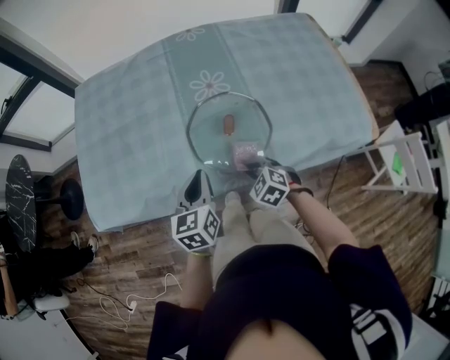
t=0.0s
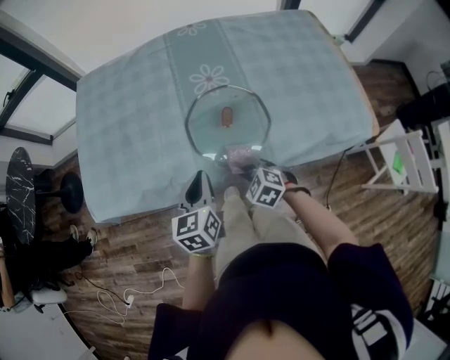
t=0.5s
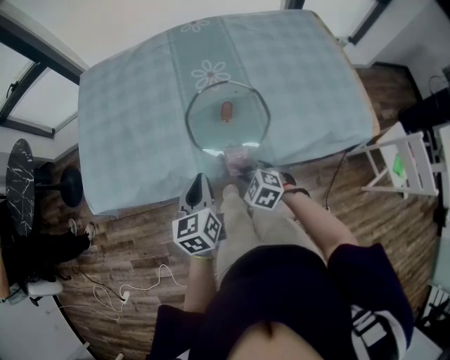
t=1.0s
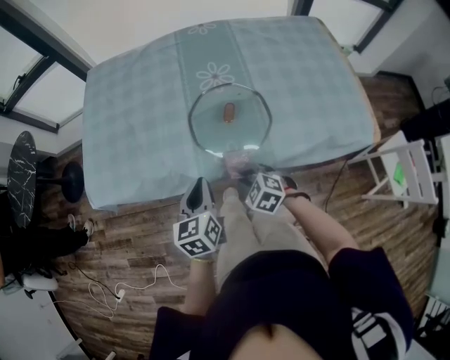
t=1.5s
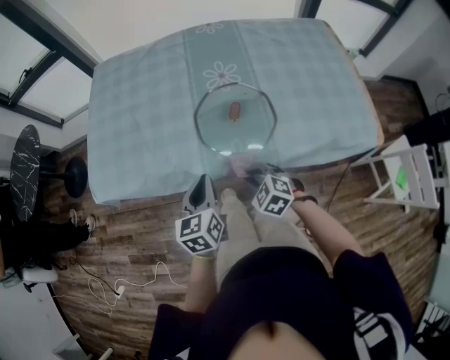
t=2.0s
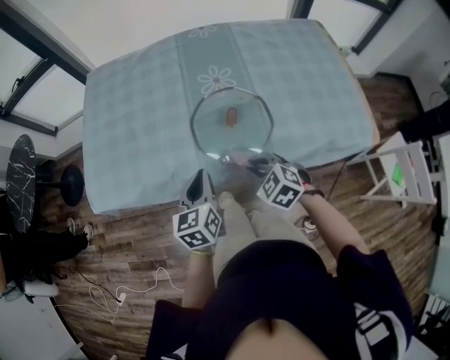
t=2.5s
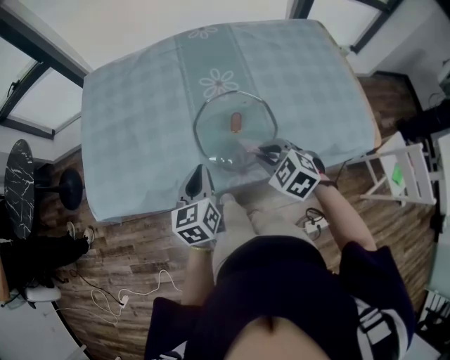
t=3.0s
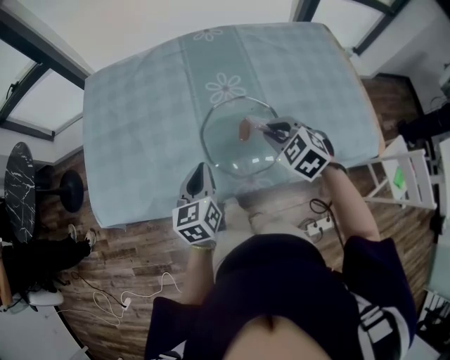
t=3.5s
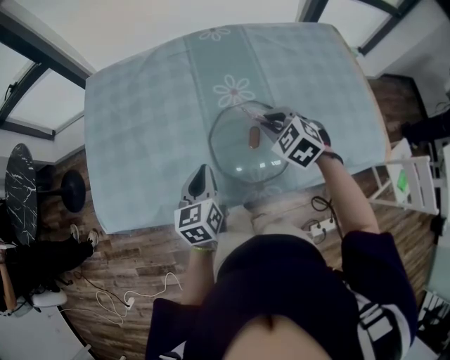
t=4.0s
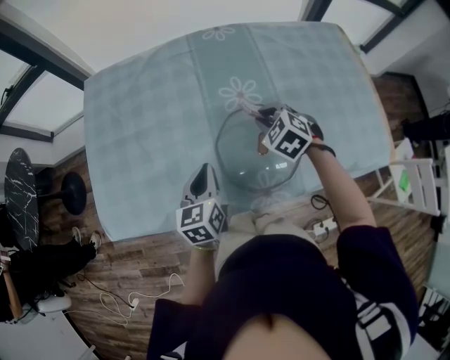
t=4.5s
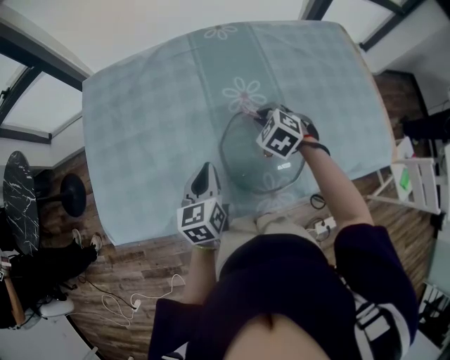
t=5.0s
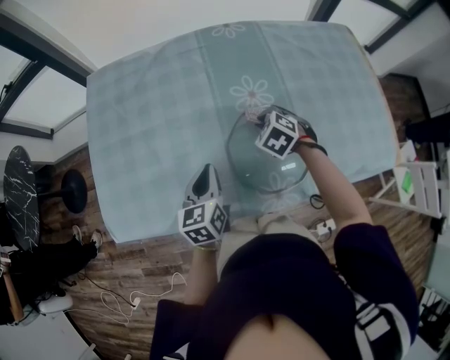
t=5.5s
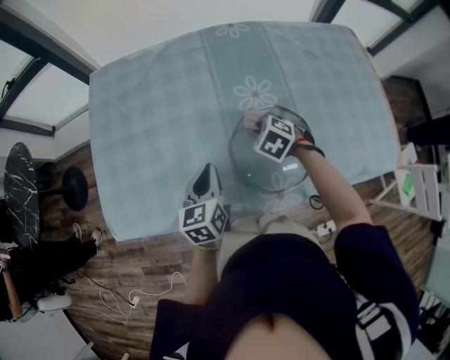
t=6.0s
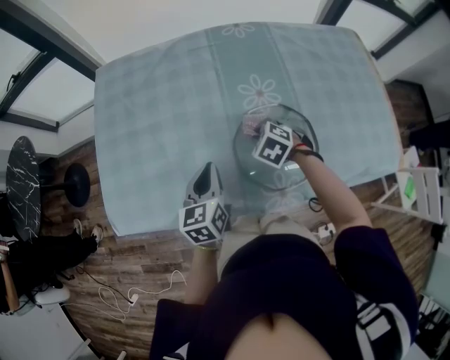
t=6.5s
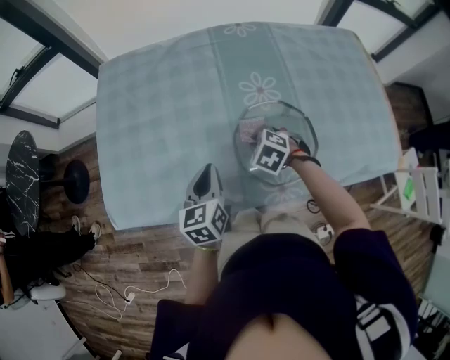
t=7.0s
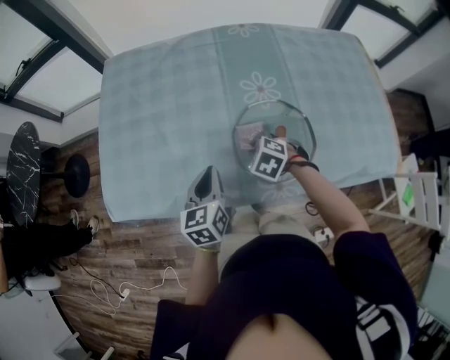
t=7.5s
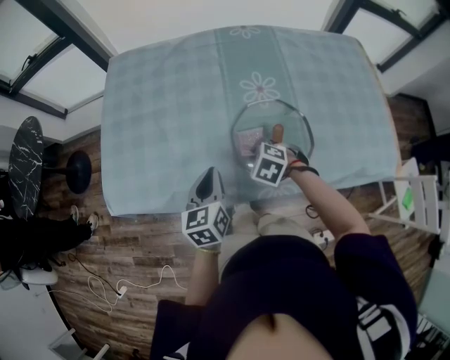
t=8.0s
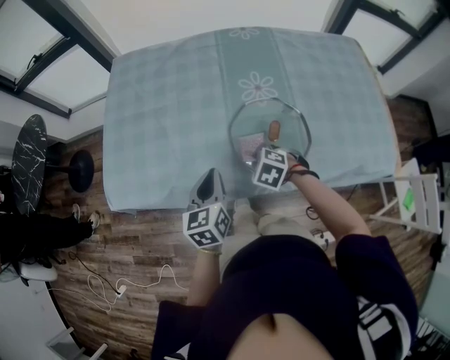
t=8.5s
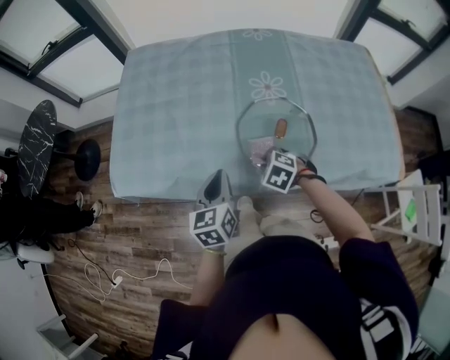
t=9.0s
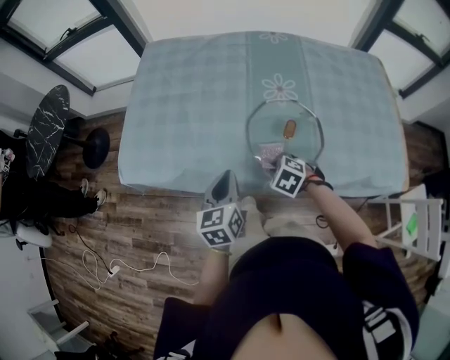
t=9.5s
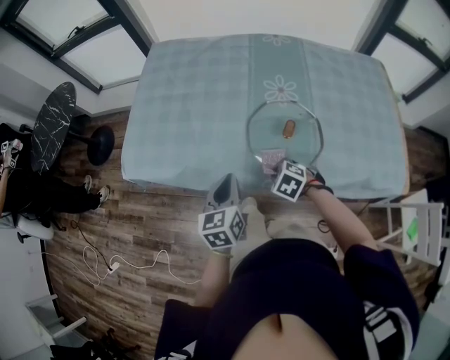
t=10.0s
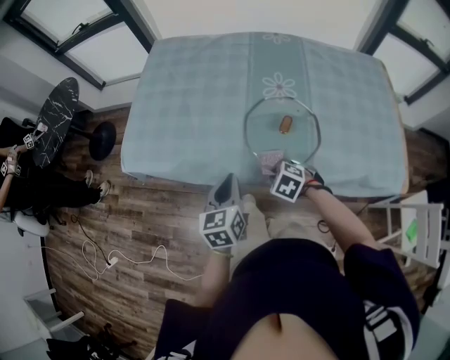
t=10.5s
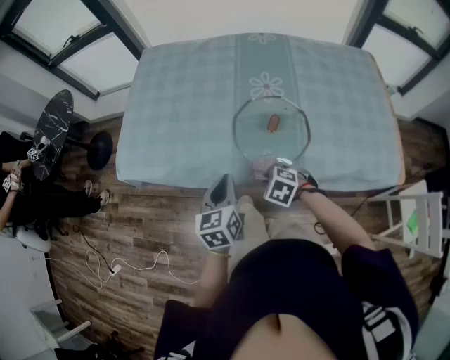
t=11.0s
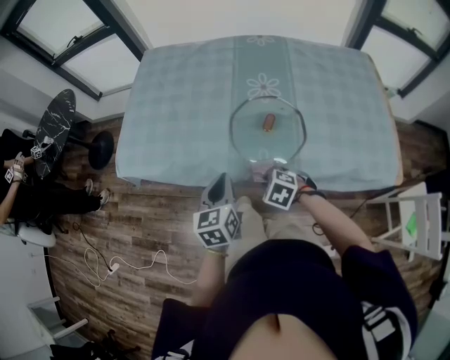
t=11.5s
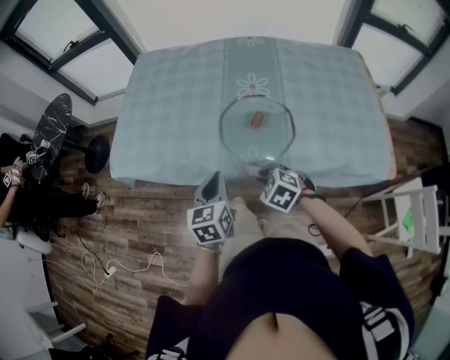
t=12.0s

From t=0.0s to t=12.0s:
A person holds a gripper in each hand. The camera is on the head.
From t=0.0s to t=2.0s: Both grippers move backward, roughly 5 cm.
From t=2.0s to t=4.0s: The right gripper heads forward and upward, covering approximately 25 cm. The left gripper is displaced forward by about 15 cm.
From t=4.0s to t=6.0s: The right gripper moves downward, to the left and forward, about 15 cm, while the left gripper shifts about 5 cm forward.
From t=6.0s to t=8.0s: The right gripper moves backward and to the left, roughly 15 cm. The left gripper moves backward, approximately 10 cm.
From t=8.0s to t=10.0s: The right gripper moves approximately 10 cm. Meanwhile the left gripper moves some 10 cm.
From t=10.0s to t=12.0s: The left gripper travels backward by some 5 cm, while the right gripper shifts approximately 10 cm backward and upward.

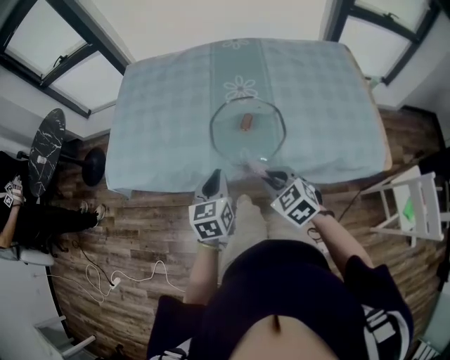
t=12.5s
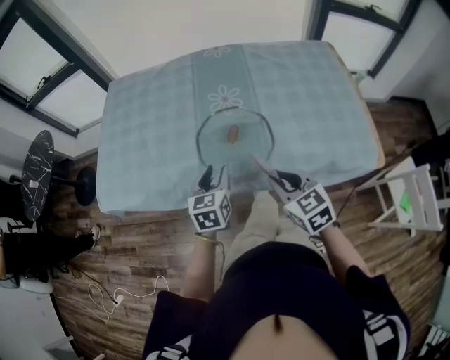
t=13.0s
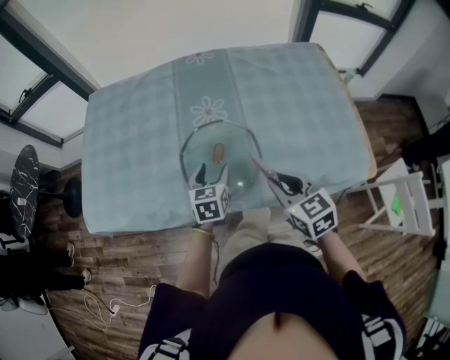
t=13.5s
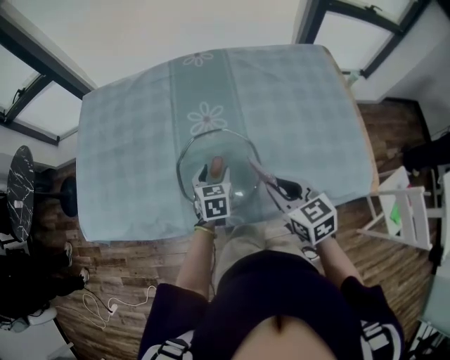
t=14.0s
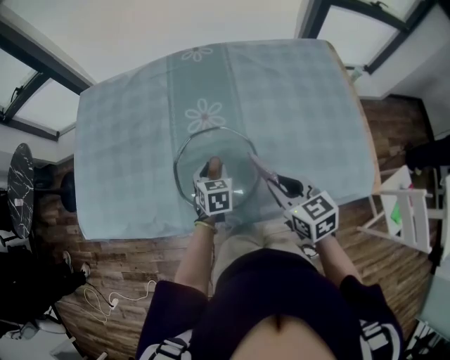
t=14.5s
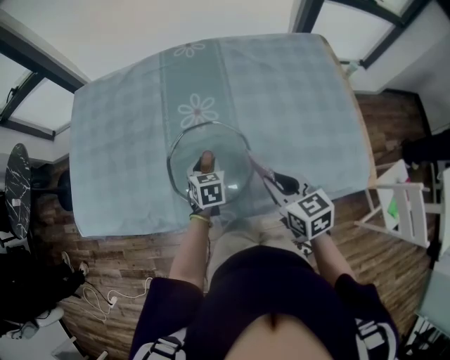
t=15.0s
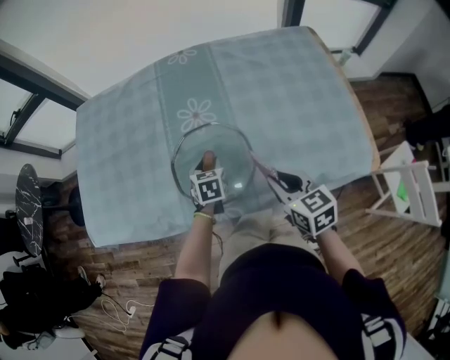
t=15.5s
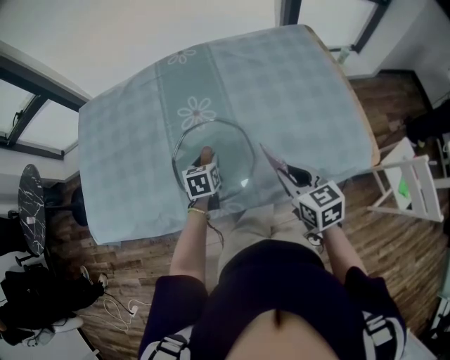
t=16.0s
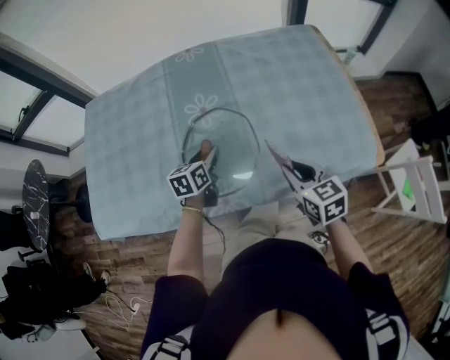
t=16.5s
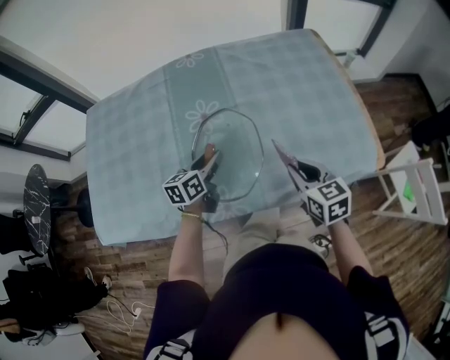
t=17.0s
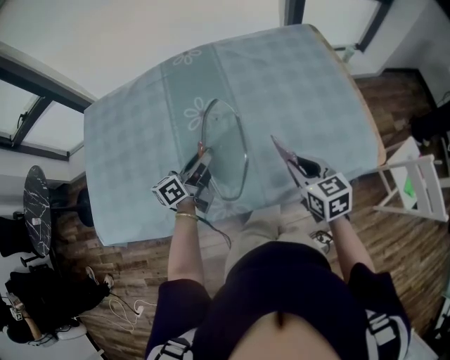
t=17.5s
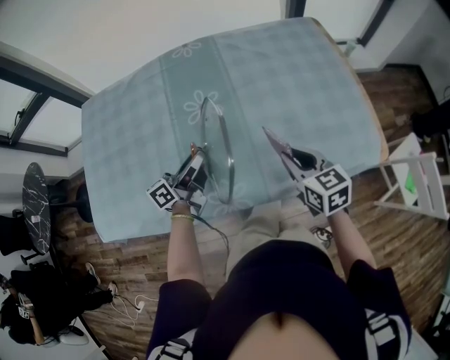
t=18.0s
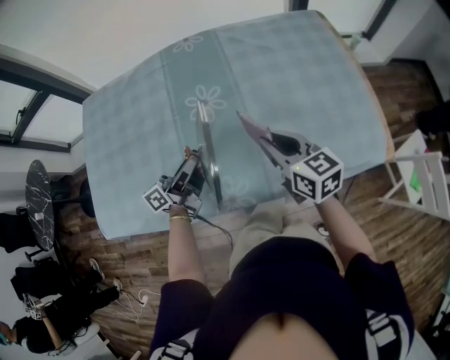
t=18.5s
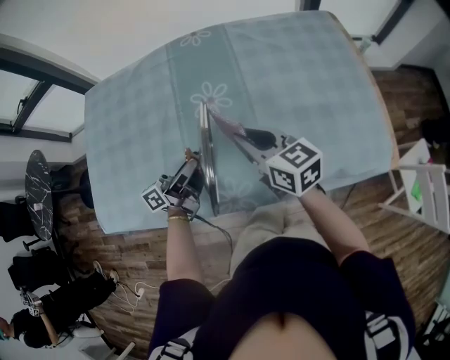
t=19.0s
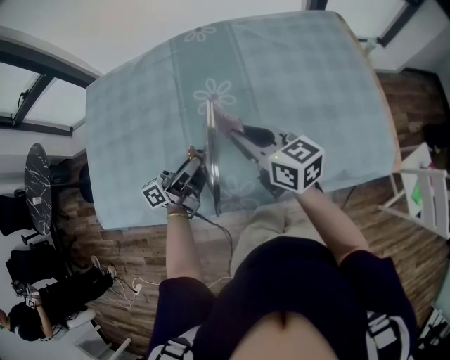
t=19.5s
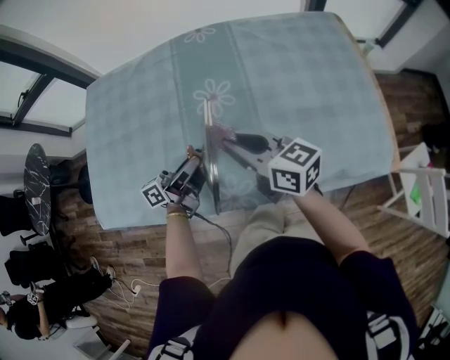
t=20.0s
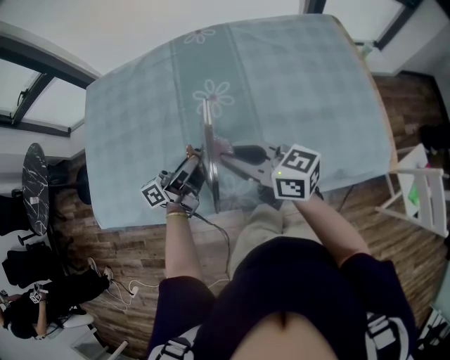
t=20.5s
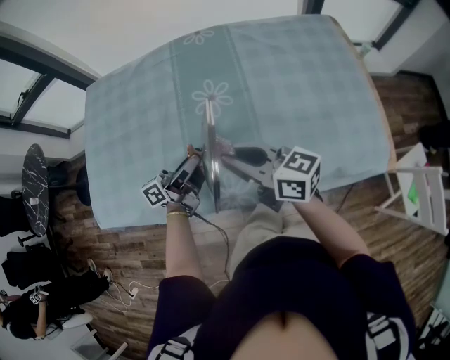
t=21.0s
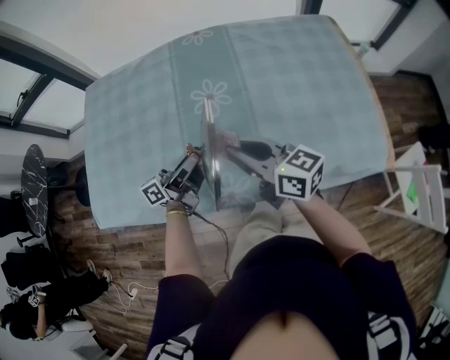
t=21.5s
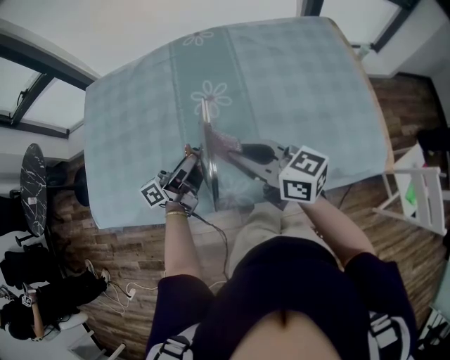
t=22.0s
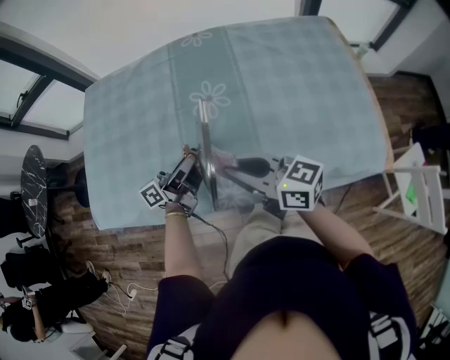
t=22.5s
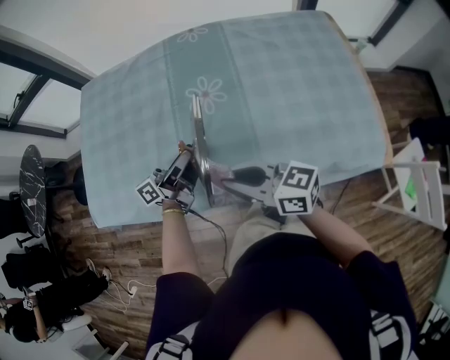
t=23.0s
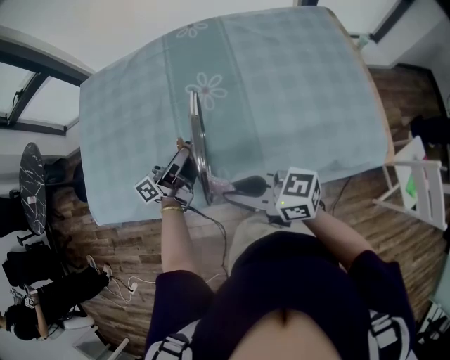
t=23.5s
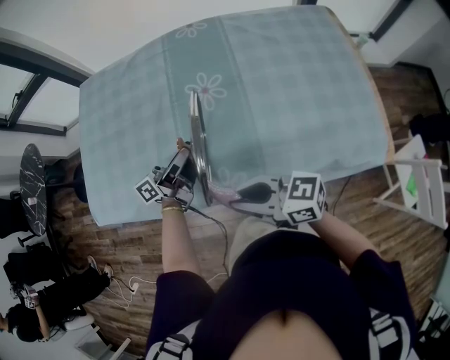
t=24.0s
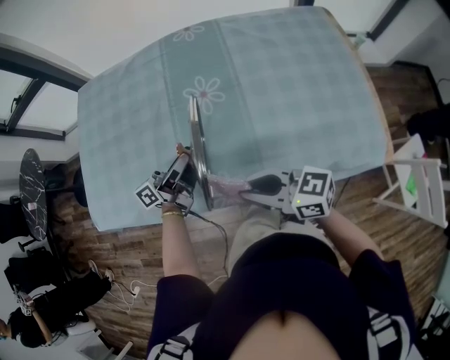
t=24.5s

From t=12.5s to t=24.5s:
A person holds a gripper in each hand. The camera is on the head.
From t=12.5s to t=14.5s: The left gripper is displaced forward, downward and to the right by approximately 25 cm, rotates about 30 degrees, and opens up, while the right gripper shifts roughly 20 cm to the right and forward, and rotates about 30 degrees.
From t=14.5s to t=16.5s: The left gripper swivels some 30 degrees; the right gripper changes place by roughly 5 cm.
From t=16.5s to t=18.5s: The right gripper heads to the left and forward, covering approximately 10 cm; the left gripper is displaced upward by approximately 5 cm, and angles its fingers upward, by roughly 50 degrees.
From t=18.5s to t=20.5s: The right gripper travels to the left by approximately 10 cm, and rotates roughly 30 degrees.
From t=20.5s to t=22.5s: The grippers stay close to where they were, moving slightly.
From t=22.5s to t=24.5s: The right gripper changes place by approximately 5 cm.

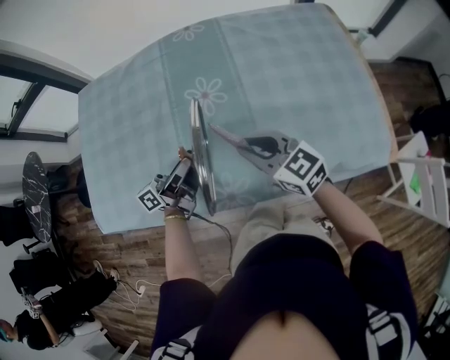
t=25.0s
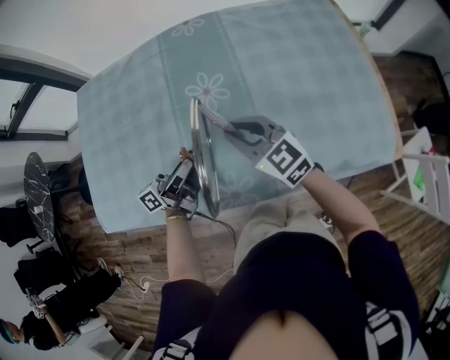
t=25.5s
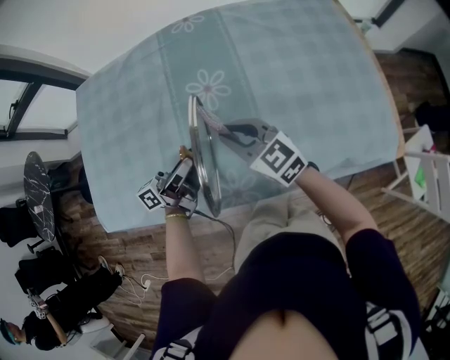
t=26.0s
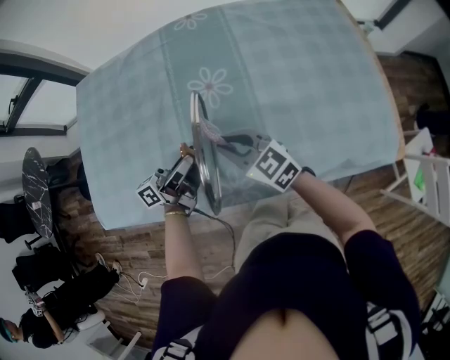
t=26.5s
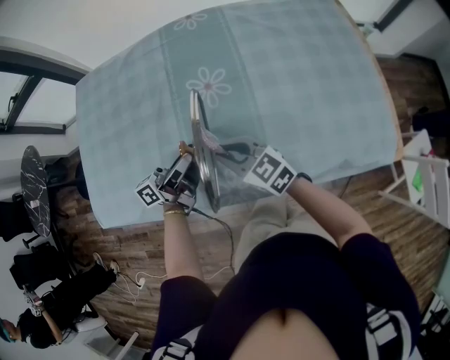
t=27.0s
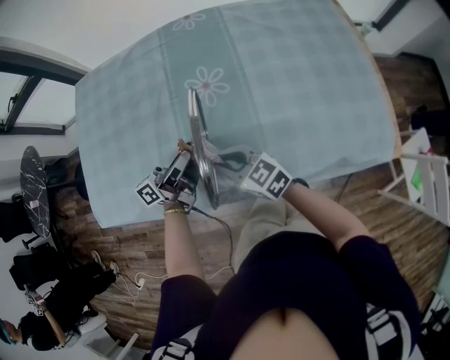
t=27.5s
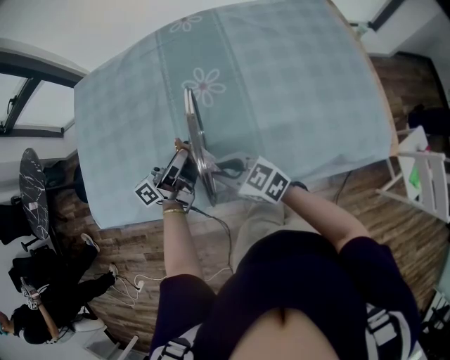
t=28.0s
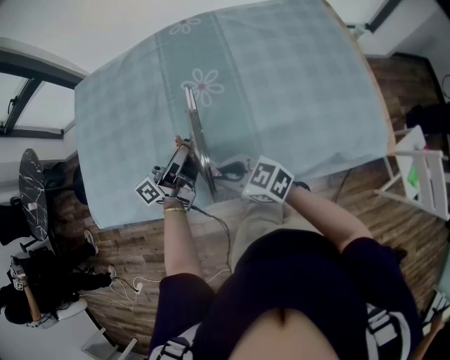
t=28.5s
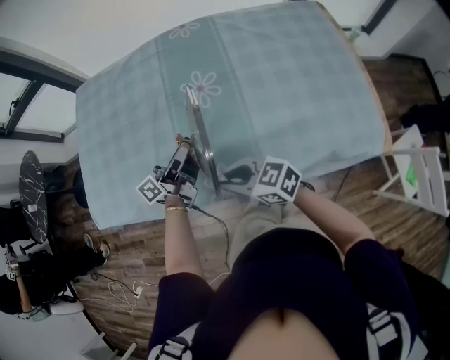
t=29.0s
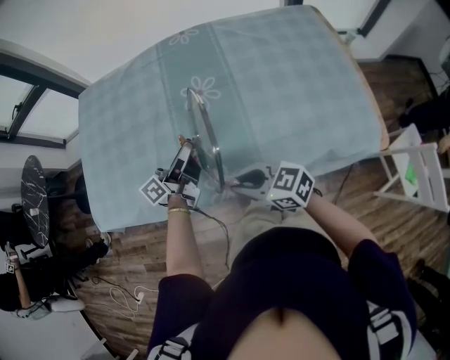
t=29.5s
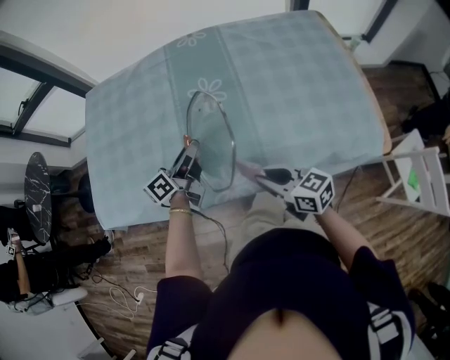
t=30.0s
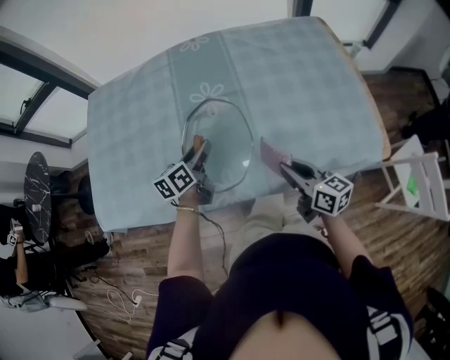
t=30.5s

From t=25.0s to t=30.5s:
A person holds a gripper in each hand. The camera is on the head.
From t=25.0s to t=27.0s: The right gripper is displaced to the left and downward by about 10 cm.
From t=27.0s to t=28.5s: The right gripper moves backward, some 10 cm.
From t=28.5s to t=30.5s: The left gripper tips its fingers downward by some 40 degrees, while the right gripper moves to the right, about 20 cm, and changes its angle by about 40 degrees.
